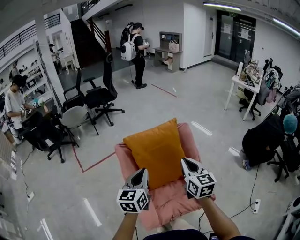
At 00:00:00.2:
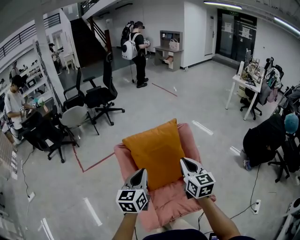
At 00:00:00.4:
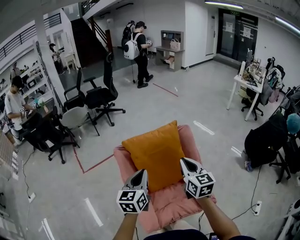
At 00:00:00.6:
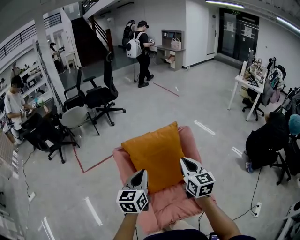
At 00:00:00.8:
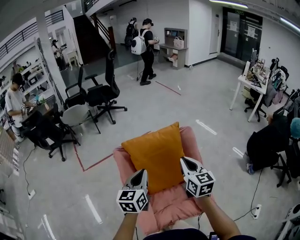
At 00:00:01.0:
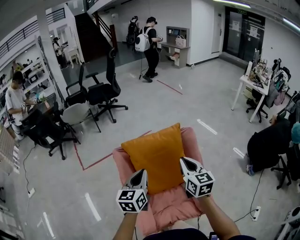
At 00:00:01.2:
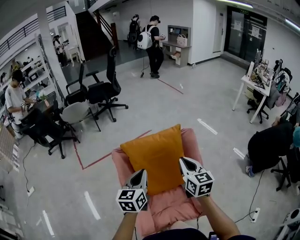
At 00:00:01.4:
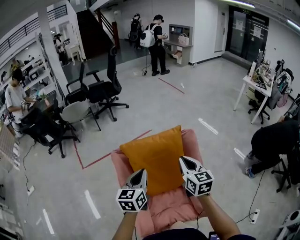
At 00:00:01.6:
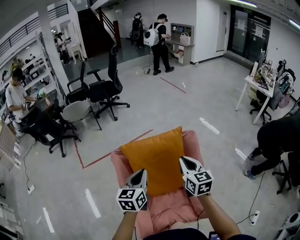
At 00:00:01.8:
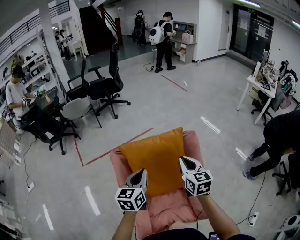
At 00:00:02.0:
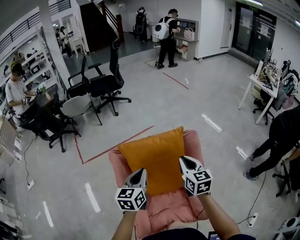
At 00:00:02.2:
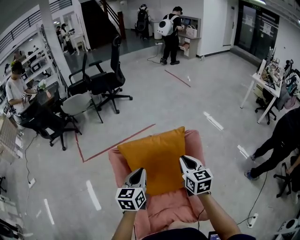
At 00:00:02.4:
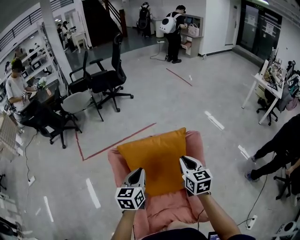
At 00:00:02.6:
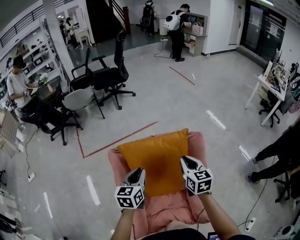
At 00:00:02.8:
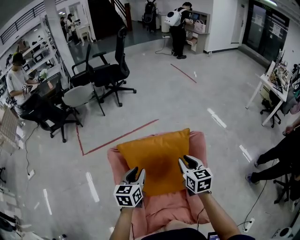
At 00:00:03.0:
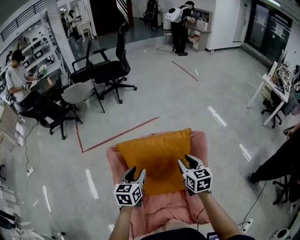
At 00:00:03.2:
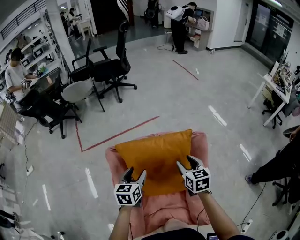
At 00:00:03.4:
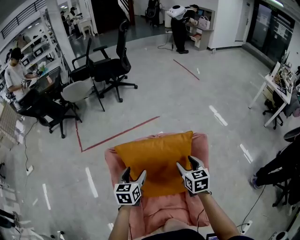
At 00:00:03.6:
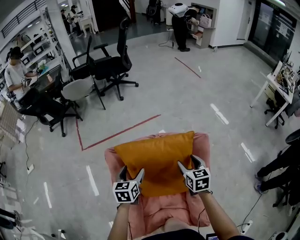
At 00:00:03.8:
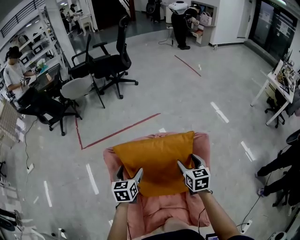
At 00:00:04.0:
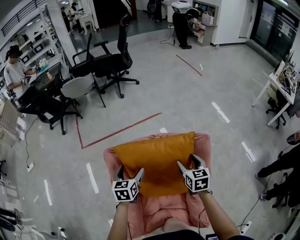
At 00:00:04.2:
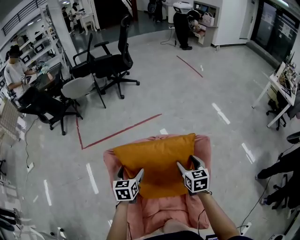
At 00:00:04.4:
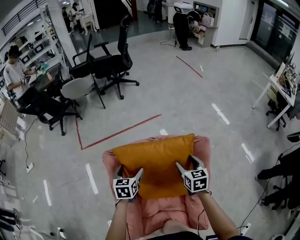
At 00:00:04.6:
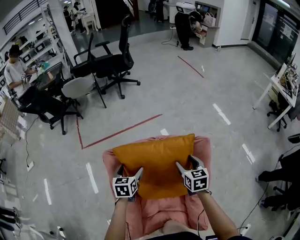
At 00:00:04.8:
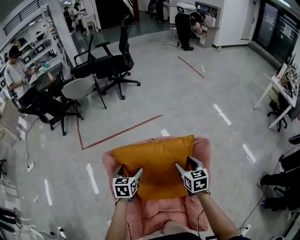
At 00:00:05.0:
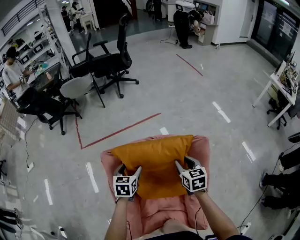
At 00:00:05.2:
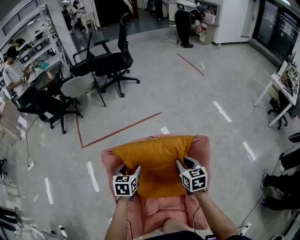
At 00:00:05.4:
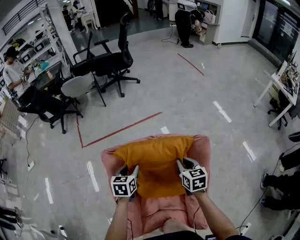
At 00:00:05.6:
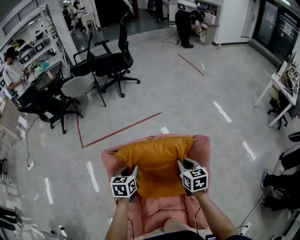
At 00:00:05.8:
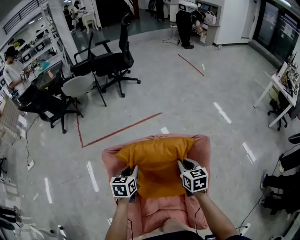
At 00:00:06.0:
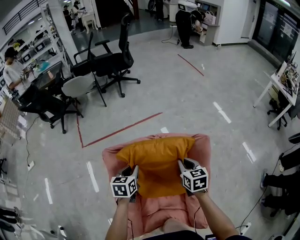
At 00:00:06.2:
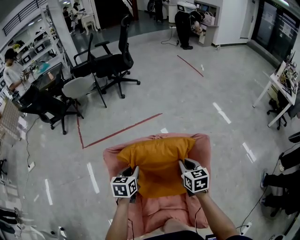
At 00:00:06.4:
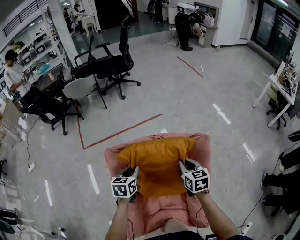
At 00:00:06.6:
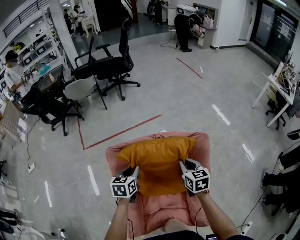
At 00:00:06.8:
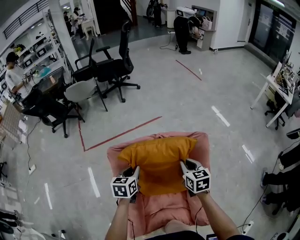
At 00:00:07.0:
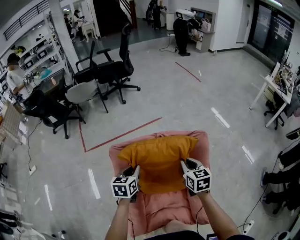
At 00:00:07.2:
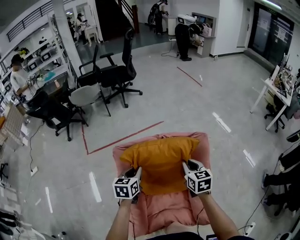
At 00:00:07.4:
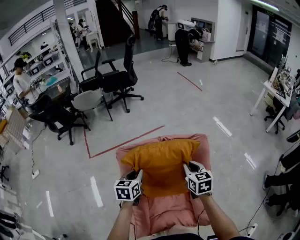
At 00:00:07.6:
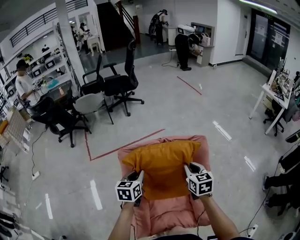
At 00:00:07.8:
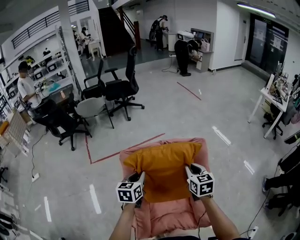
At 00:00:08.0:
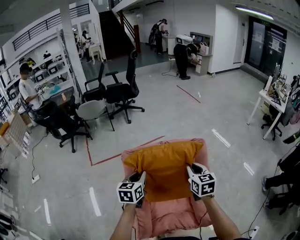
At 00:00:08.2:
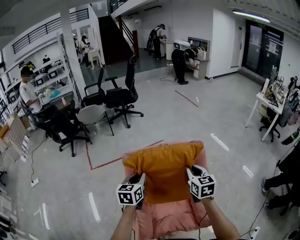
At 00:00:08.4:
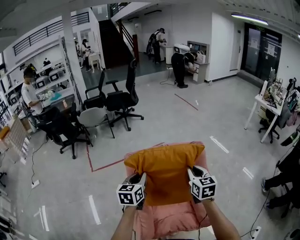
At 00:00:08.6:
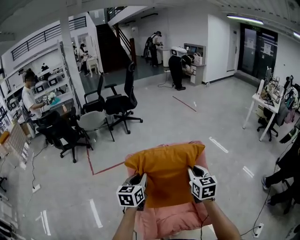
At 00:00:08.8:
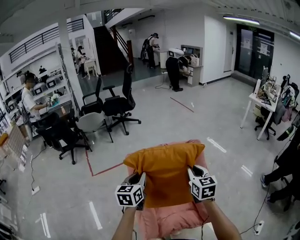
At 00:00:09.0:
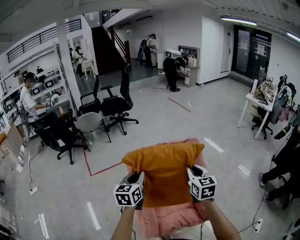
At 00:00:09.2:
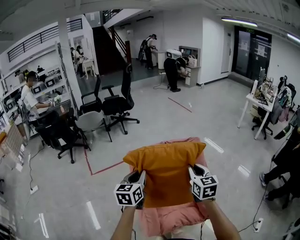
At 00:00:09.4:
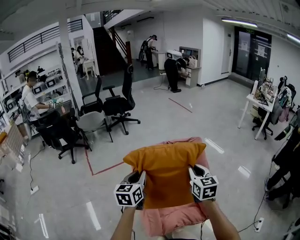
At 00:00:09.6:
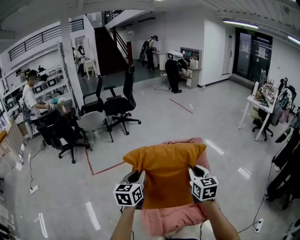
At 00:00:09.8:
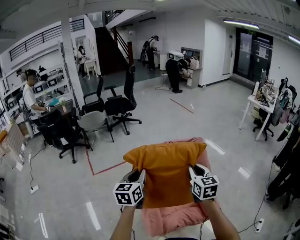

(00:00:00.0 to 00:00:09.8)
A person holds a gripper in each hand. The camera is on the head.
00:00:00.0 - 00:00:01.4: Both grippers move forward, approximately 10 cm.
00:00:01.4 - 00:00:02.8: The left gripper shifts roughly 10 cm downward and forward. Meanwhile the right gripper moves forward and downward, roughly 15 cm.
00:00:02.8 - 00:00:04.2: Both grippers move downward and forward, approximately 10 cm. The right gripper opens. Meanwhile the left gripper opens up.
00:00:04.2 - 00:00:05.6: The left gripper closes up, while the right gripper closes up.
00:00:05.6 - 00:00:07.0: The right gripper goes about 10 cm backward and upward; the left gripper goes about 5 cm upward.
00:00:07.0 - 00:00:08.4: The left gripper heads upward and backward, covering some 15 cm. The right gripper heads backward and upward, covering approximately 20 cm.
00:00:08.4 - 00:00:09.8: The left gripper heads backward, upward and to the left, covering some 10 cm. Meanwhile the right gripper moves backward, roughly 10 cm.

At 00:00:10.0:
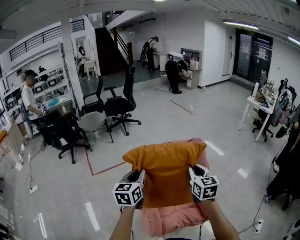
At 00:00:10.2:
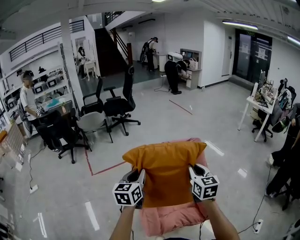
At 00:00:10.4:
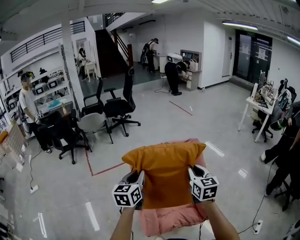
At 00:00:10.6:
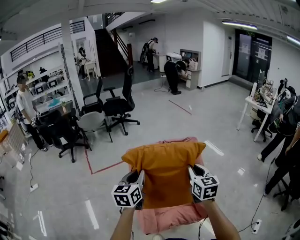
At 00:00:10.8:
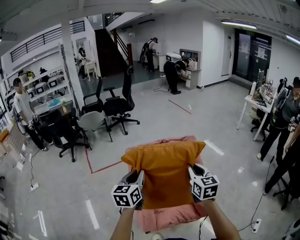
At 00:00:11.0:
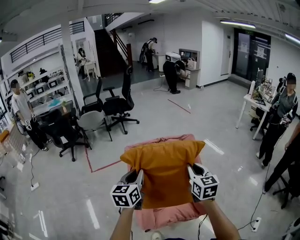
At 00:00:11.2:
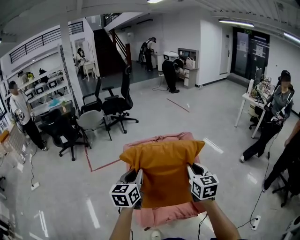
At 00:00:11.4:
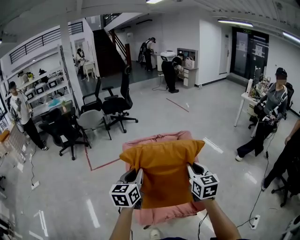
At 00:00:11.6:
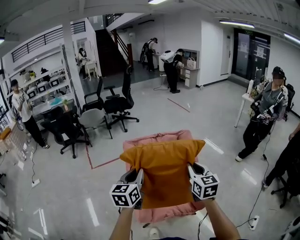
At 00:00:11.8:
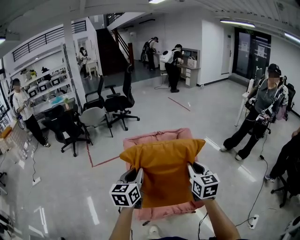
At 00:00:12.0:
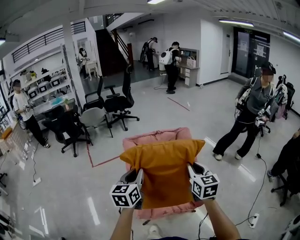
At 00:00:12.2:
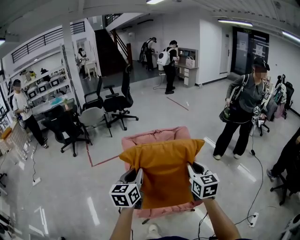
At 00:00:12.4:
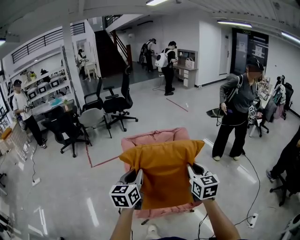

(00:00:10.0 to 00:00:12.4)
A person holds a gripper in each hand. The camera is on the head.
00:00:10.0 - 00:00:11.2: The two grippers go approximately 10 cm backward and to the right.
00:00:11.2 - 00:00:12.4: The grippers both shift backward by some 10 cm.

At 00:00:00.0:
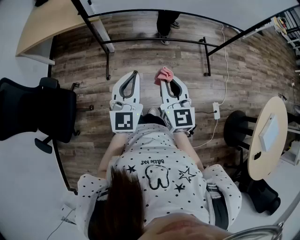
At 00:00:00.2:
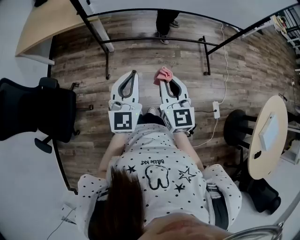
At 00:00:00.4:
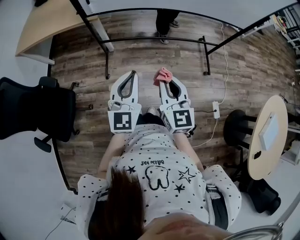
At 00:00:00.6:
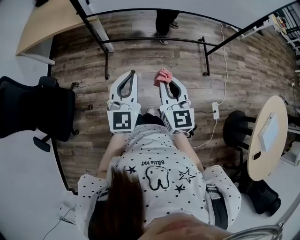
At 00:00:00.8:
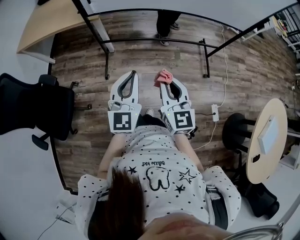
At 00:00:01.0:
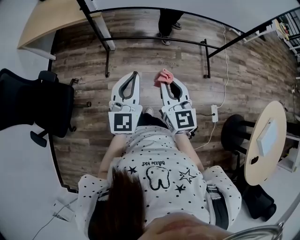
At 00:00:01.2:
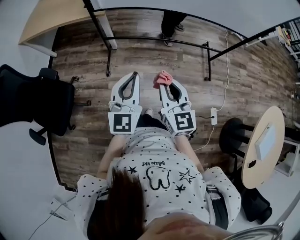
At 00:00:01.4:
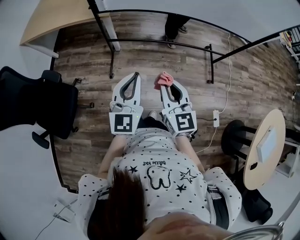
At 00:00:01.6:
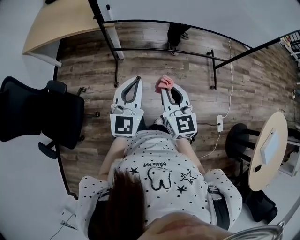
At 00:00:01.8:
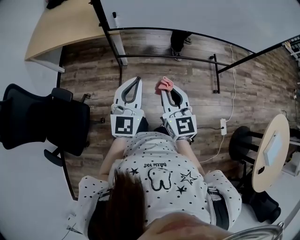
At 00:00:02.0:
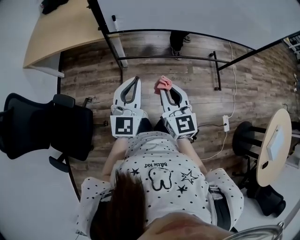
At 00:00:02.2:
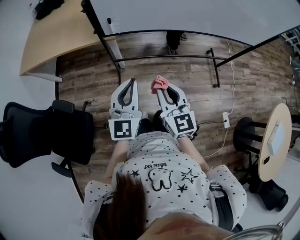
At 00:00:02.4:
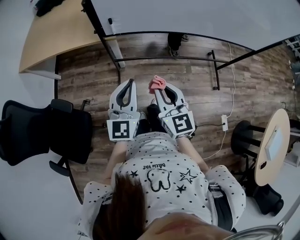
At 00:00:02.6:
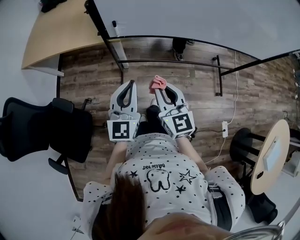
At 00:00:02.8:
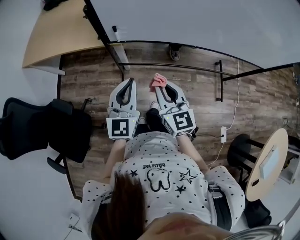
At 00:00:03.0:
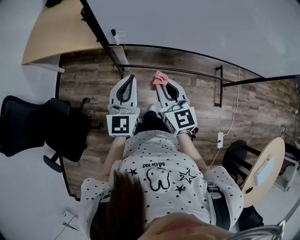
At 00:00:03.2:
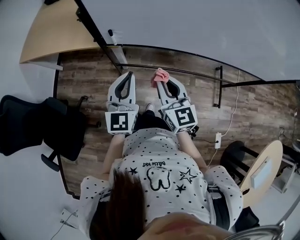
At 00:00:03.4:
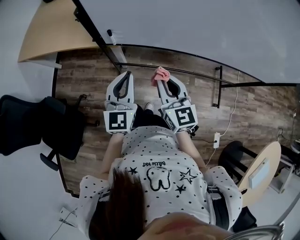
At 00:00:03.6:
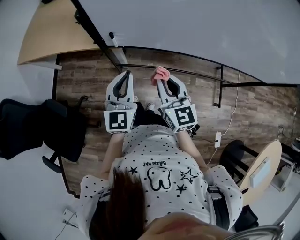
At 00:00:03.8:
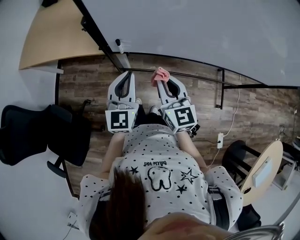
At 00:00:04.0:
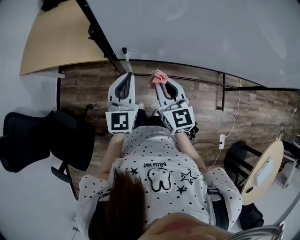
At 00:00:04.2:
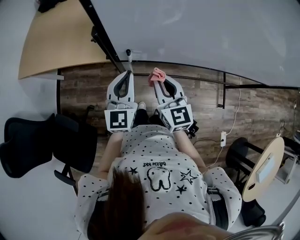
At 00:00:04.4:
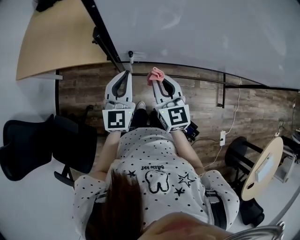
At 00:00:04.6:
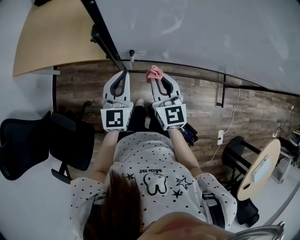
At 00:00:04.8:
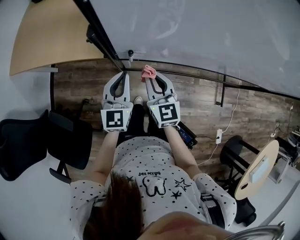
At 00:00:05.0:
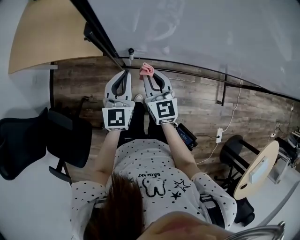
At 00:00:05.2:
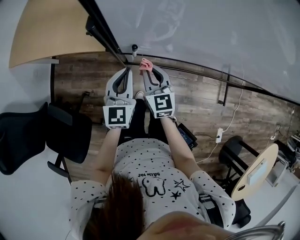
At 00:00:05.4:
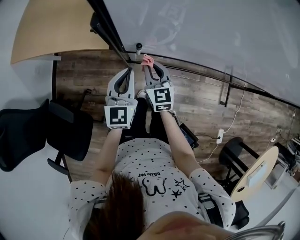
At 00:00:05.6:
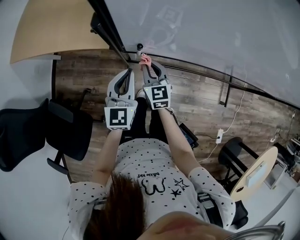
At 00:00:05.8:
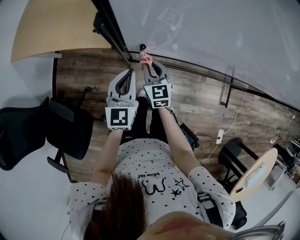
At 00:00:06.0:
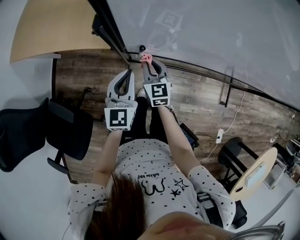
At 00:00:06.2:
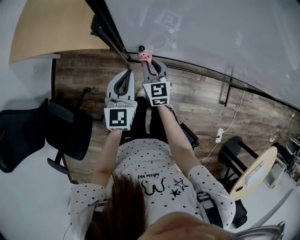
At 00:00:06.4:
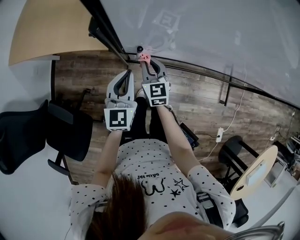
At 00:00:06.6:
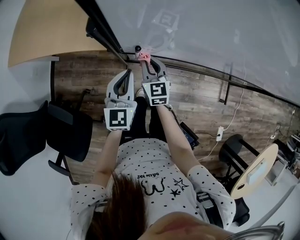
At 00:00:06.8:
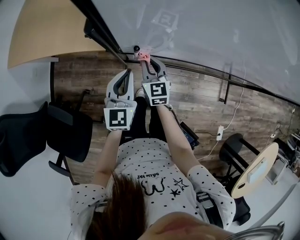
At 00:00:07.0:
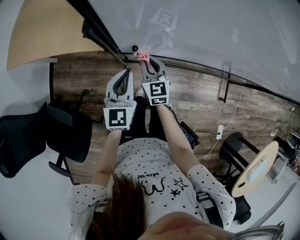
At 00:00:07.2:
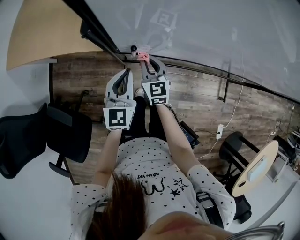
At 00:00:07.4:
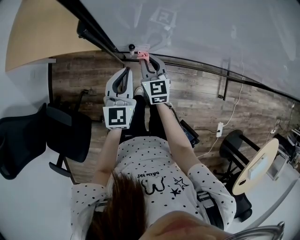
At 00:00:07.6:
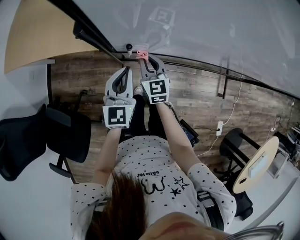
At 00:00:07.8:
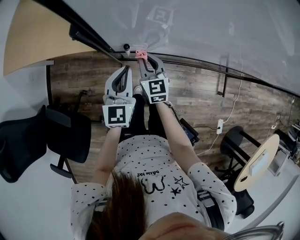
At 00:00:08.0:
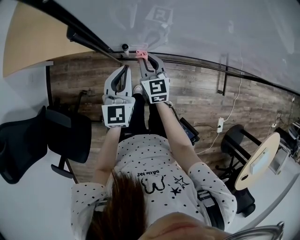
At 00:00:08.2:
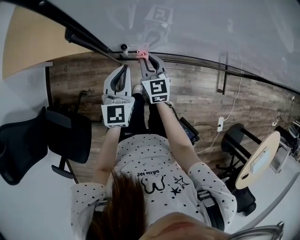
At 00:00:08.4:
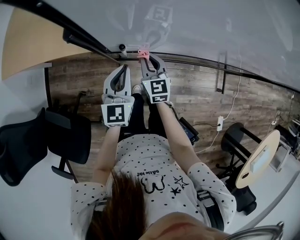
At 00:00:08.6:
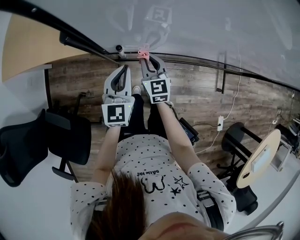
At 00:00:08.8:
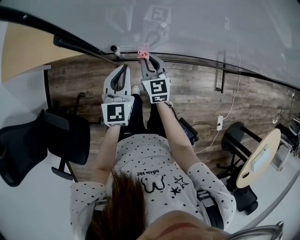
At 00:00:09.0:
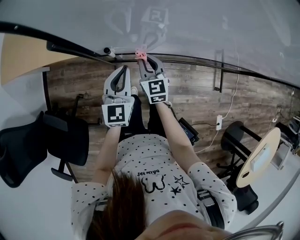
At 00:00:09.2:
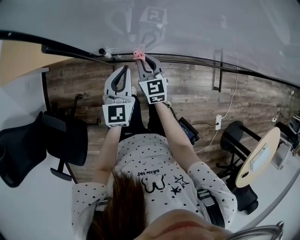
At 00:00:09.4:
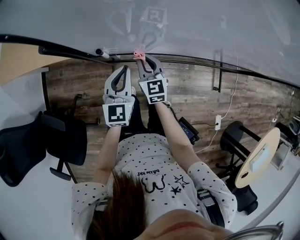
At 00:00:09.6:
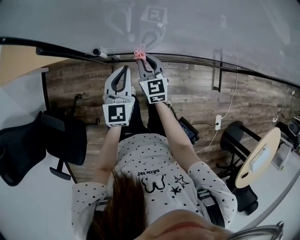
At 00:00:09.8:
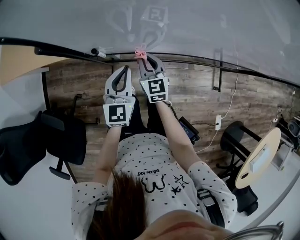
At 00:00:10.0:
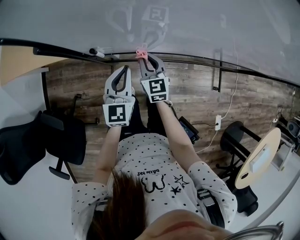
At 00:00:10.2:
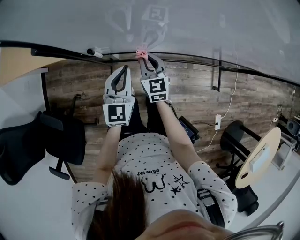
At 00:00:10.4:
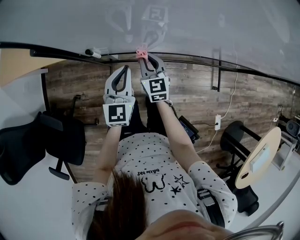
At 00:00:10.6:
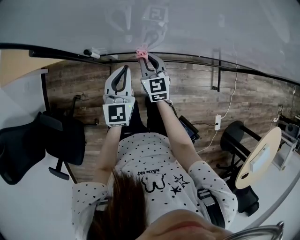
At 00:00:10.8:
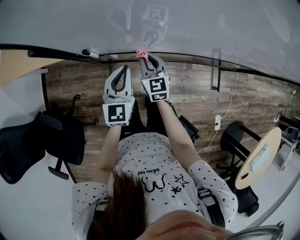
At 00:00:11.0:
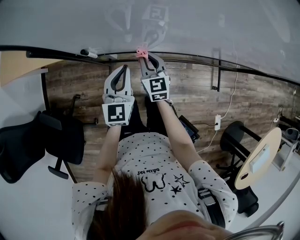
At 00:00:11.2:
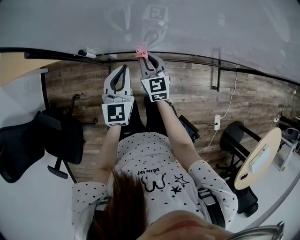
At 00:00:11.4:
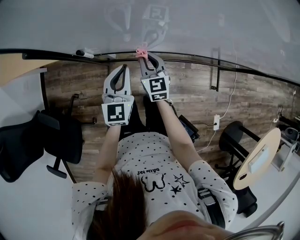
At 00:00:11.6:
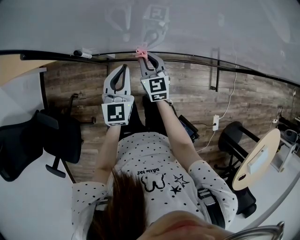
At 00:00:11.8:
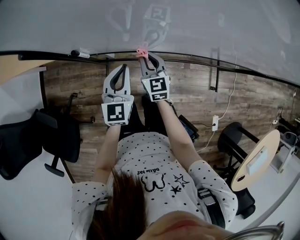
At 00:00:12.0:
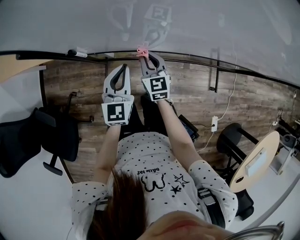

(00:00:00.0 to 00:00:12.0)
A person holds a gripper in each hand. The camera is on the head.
00:00:00.0 - 00:00:01.6: The grippers both shift to the left by about 5 cm.
00:00:01.6 - 00:00:03.0: Both grippers move forward, some 25 cm.
00:00:03.0 - 00:00:04.4: The grippers both shift forward and to the left by about 20 cm.
00:00:04.4 - 00:00:06.0: The left gripper heads downward, covering some 10 cm. The right gripper travels downward and forward by about 20 cm.
00:00:06.0 - 00:00:07.6: There are only small adjustments of the grippers.
00:00:07.6 - 00:00:09.0: The right gripper heads to the right, covering about 5 cm.
00:00:09.0 - 00:00:10.4: The two grippers go approximately 5 cm to the right.
00:00:10.4 - 00:00:12.0: Both grippers travel together to the right, approximately 5 cm.
